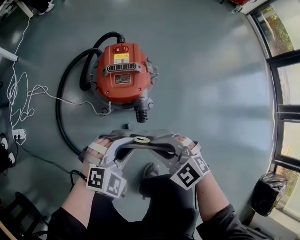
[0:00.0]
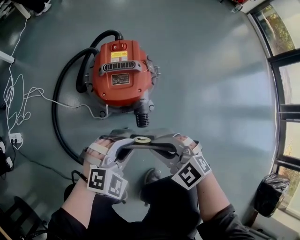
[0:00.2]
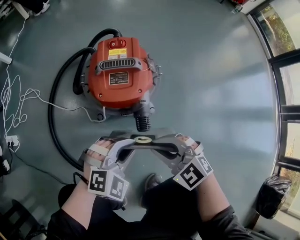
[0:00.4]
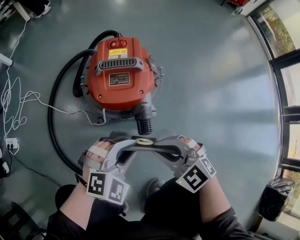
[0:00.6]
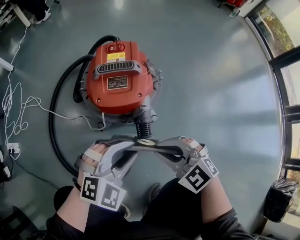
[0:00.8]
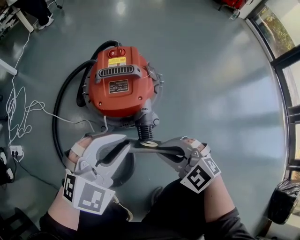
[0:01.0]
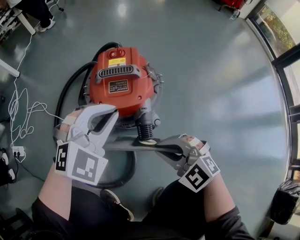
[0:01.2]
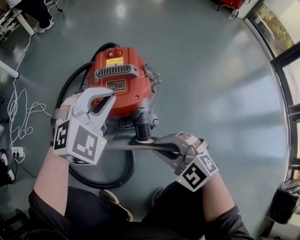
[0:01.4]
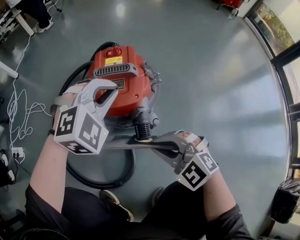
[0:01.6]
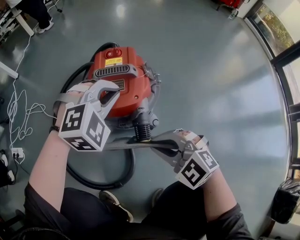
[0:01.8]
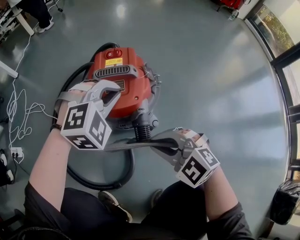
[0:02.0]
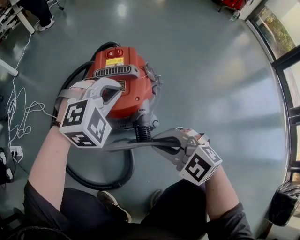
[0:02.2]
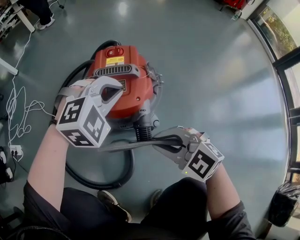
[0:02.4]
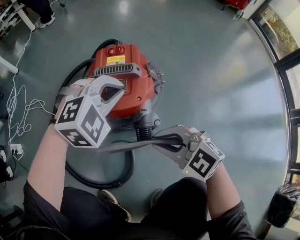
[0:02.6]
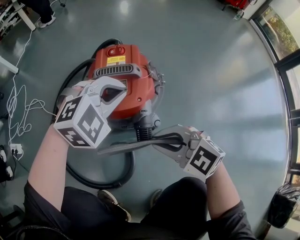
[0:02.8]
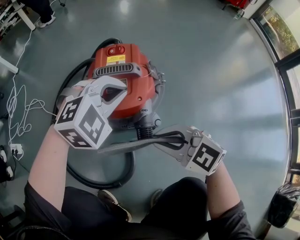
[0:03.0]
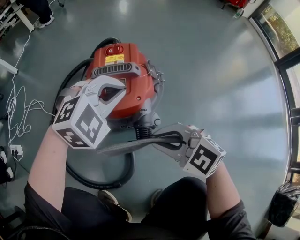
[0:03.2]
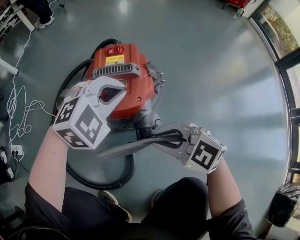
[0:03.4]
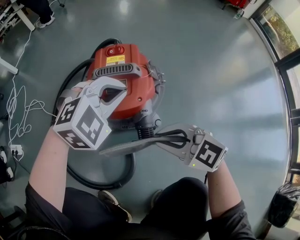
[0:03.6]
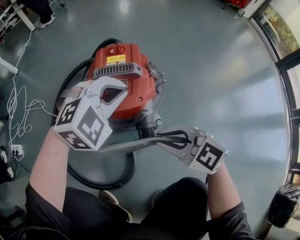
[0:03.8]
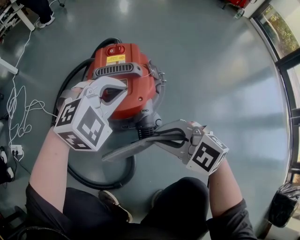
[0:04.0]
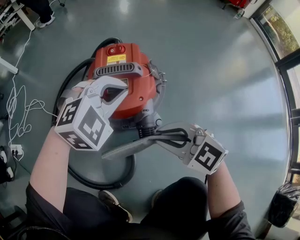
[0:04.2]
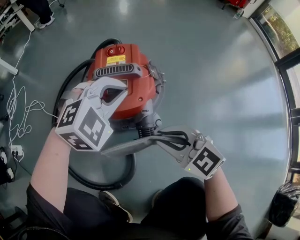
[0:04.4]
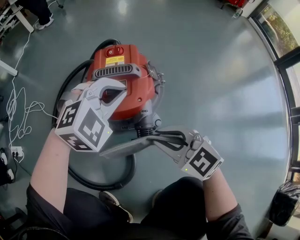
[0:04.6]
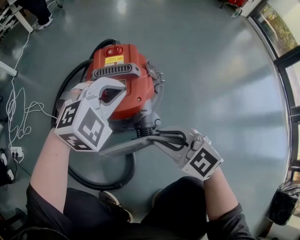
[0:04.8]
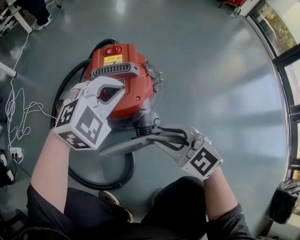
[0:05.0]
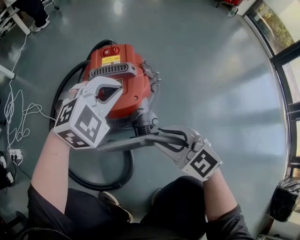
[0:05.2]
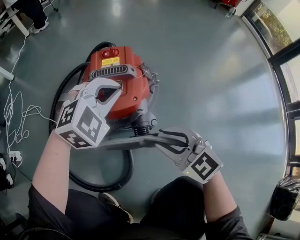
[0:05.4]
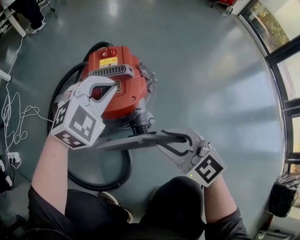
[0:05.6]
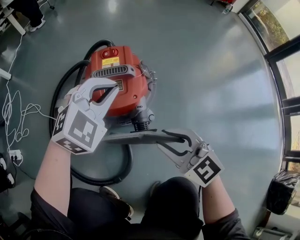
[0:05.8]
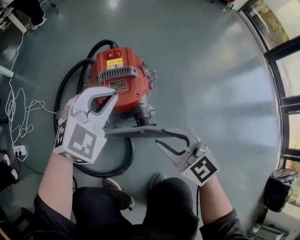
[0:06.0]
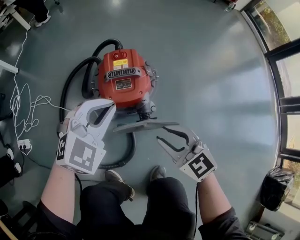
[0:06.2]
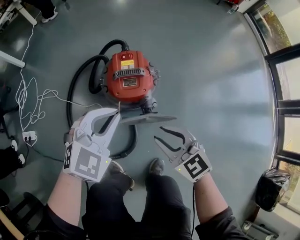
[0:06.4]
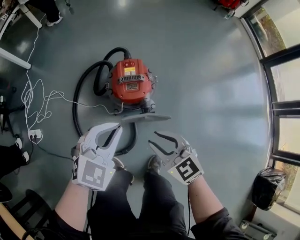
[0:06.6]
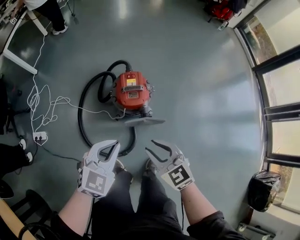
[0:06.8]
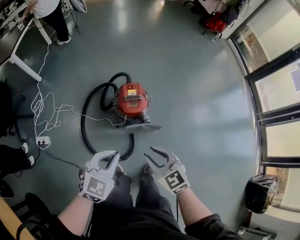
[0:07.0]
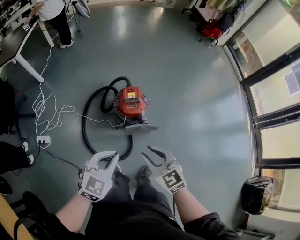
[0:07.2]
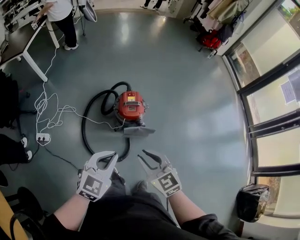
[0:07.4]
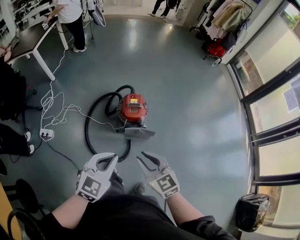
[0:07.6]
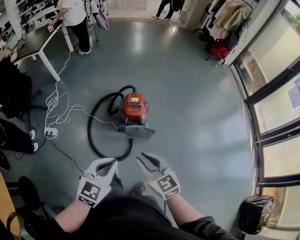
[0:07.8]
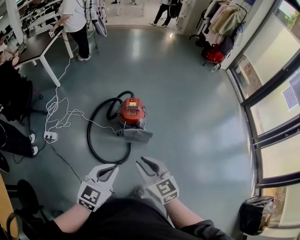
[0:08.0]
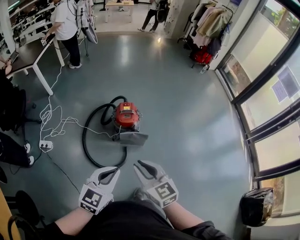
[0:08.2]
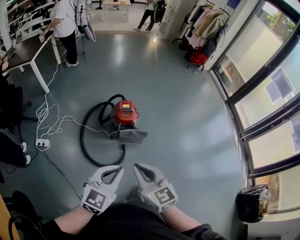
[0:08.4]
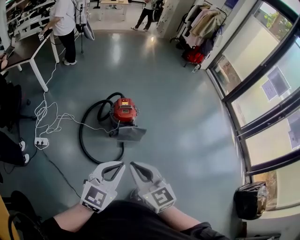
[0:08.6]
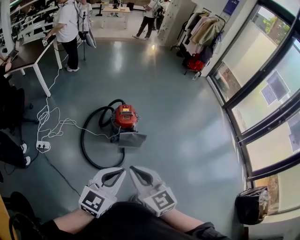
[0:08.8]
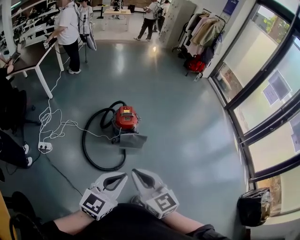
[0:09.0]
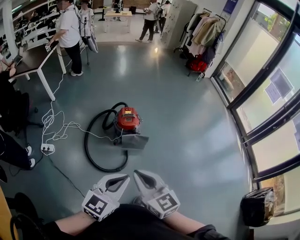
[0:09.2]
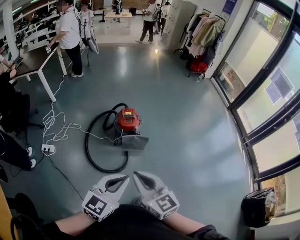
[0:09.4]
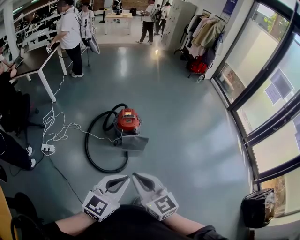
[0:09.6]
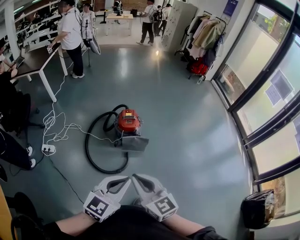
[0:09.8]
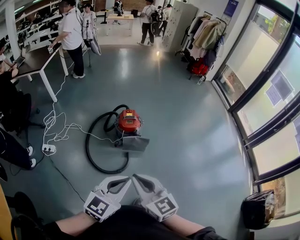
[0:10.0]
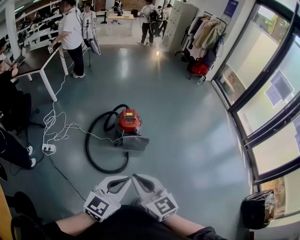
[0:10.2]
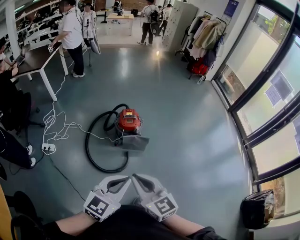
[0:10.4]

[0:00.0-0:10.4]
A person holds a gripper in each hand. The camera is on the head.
0.0 to 1.4 s: The left gripper is displaced forward by roughly 20 cm, rotates about 20 degrees, and closes its fingers, while the right gripper moves downward, approximately 10 cm.
1.4 to 3.0 s: The left gripper shifts by about 5 cm.
3.0 to 4.4 s: The grippers stay close to where they were, moving slightly.
4.4 to 6.0 s: Both grippers travel together upward, roughly 10 cm.
6.0 to 7.4 s: The left gripper heads upward and backward, covering about 50 cm, and changes its angle by approximately 30 degrees, while the right gripper moves upward, roughly 40 cm.
7.4 to 9.0 s: Both grippers move backward and upward, roughly 25 cm. The right gripper closes its fingers.
9.0 to 10.4 s: There are only small adjustments of the grippers.

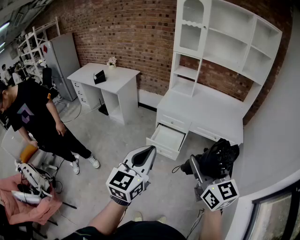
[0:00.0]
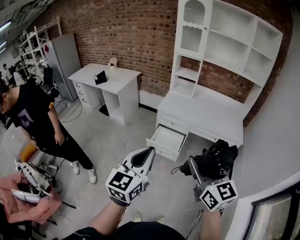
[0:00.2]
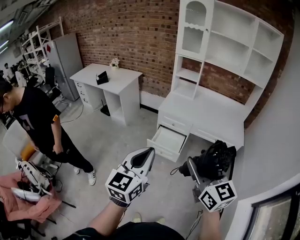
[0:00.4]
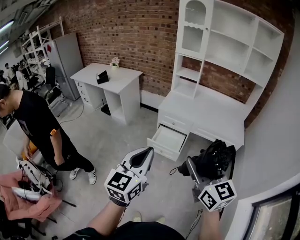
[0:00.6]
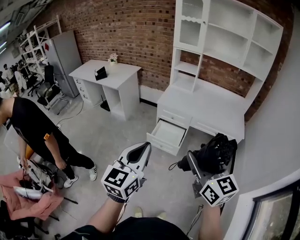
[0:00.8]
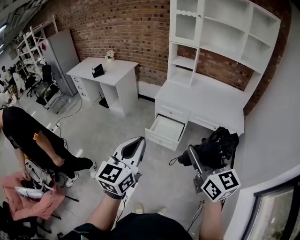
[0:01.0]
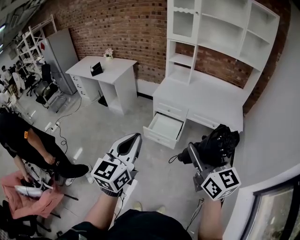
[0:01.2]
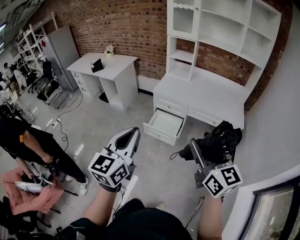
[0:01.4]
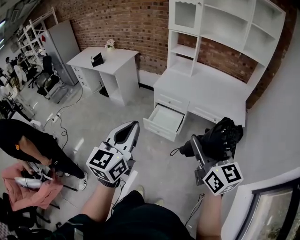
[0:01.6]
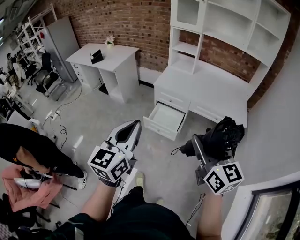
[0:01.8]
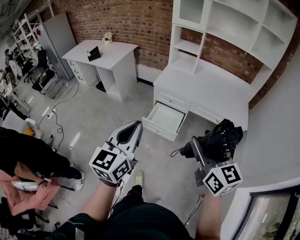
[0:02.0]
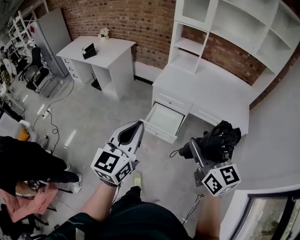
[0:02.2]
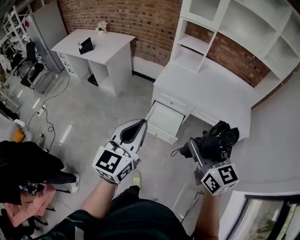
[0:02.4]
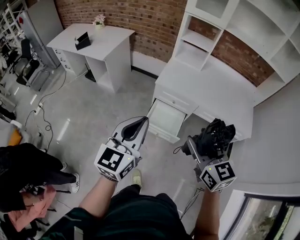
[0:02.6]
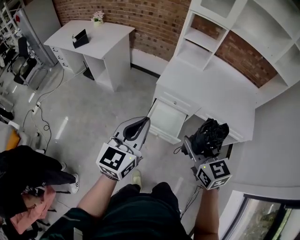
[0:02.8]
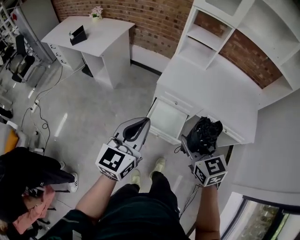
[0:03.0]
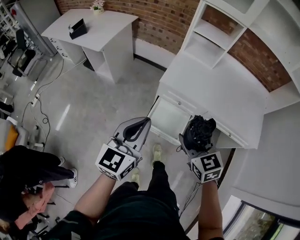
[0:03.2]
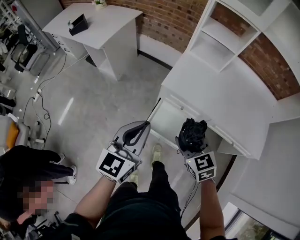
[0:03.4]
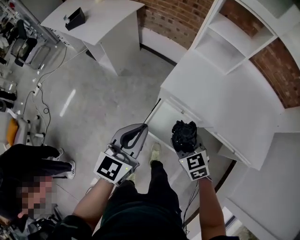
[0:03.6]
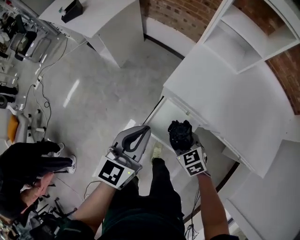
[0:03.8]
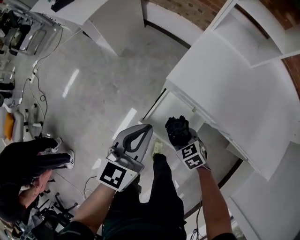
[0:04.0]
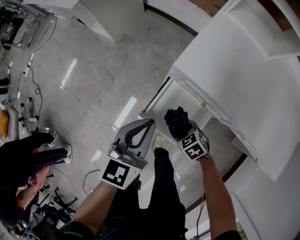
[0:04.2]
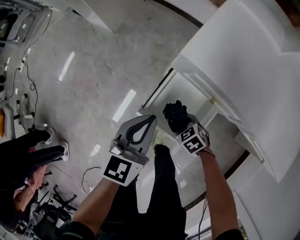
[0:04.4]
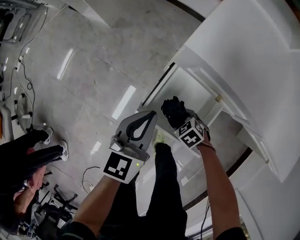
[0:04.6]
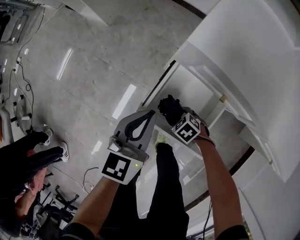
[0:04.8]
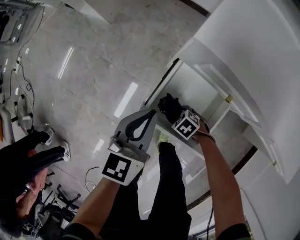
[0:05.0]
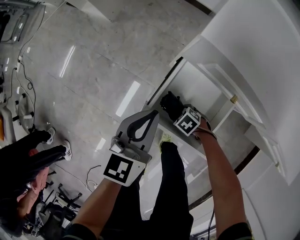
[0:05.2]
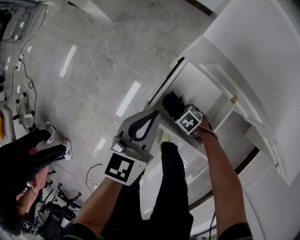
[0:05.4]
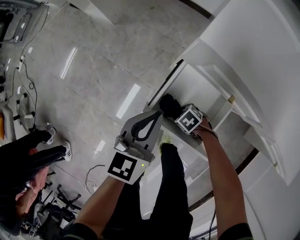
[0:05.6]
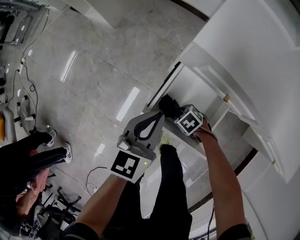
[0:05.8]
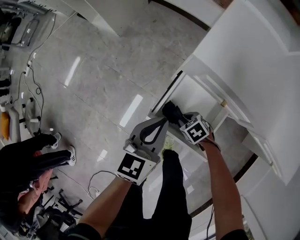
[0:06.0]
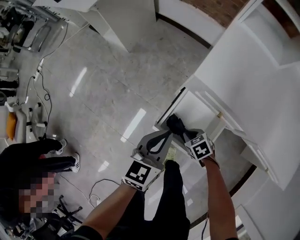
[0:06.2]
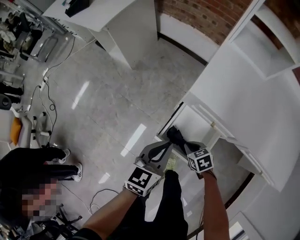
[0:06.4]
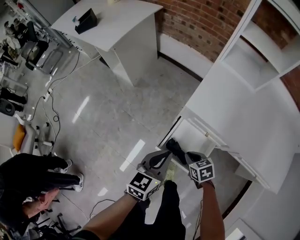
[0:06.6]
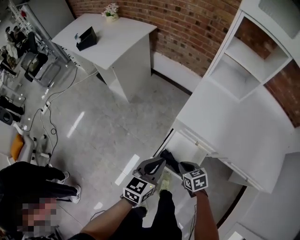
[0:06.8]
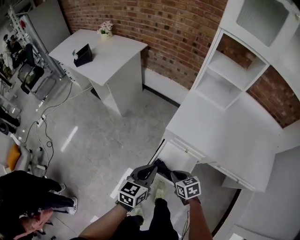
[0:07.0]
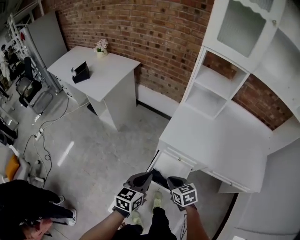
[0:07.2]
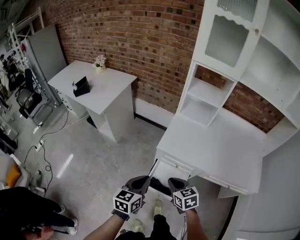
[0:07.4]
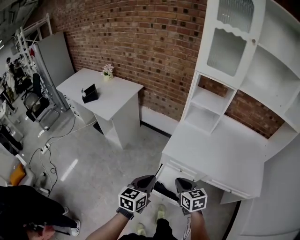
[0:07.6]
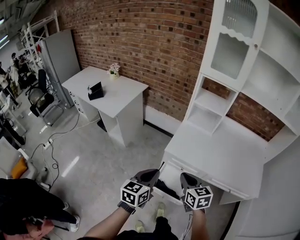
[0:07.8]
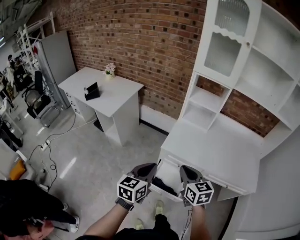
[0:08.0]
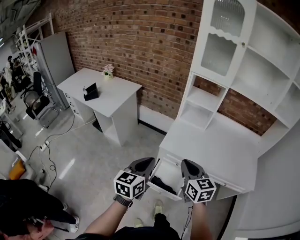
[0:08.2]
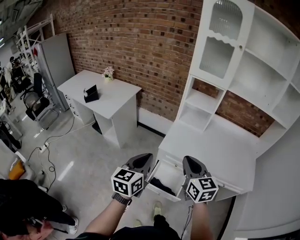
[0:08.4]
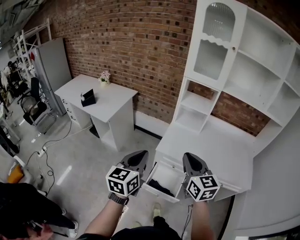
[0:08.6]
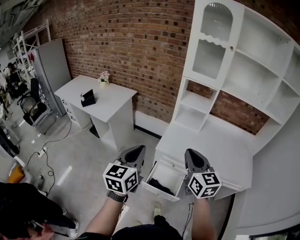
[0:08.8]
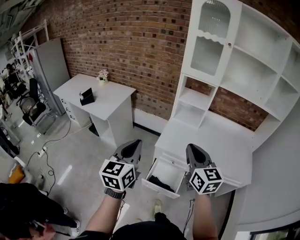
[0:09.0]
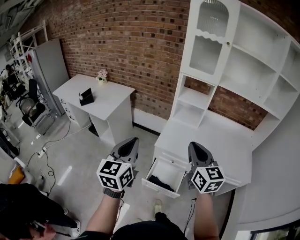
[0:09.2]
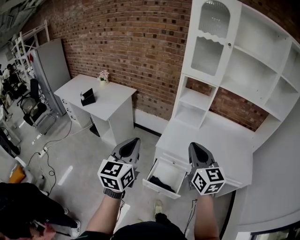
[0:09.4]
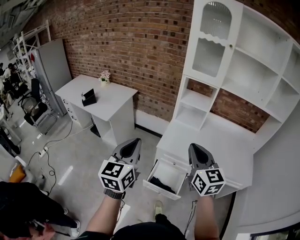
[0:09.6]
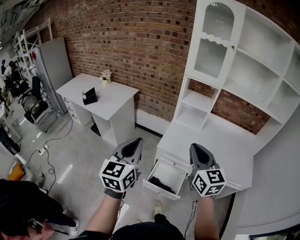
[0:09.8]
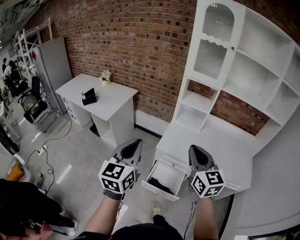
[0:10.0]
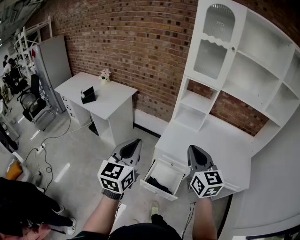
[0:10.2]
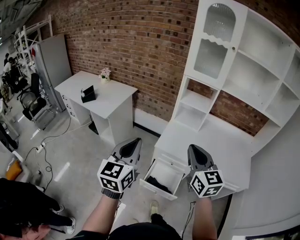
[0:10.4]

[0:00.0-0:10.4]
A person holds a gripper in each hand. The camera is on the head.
0.0 to 1.4 s: The right gripper heads to the right, covering approximately 10 cm.
1.4 to 3.0 s: The left gripper moves forward, some 35 cm. Meanwhile the right gripper shifts roughly 40 cm forward, downward and to the left, and rotates some 30 degrees.
3.0 to 4.4 s: The two grippers go some 50 cm downward. The left gripper rotates roughly 20 degrees. The right gripper points its fingers roughly 40 degrees further downward.
4.4 to 6.0 s: The right gripper goes approximately 5 cm downward, and closes up.
6.0 to 7.4 s: The left gripper heads upward, covering some 30 cm. The right gripper travels upward by approximately 50 cm, and tips its fingers upward by approximately 30 degrees.
7.4 to 9.0 s: The grippers both shift upward by some 30 cm. The left gripper changes its angle by some 20 degrees. Meanwhile the right gripper tilts its fingers roughly 30 degrees upward.
9.0 to 10.4 s: The grippers make only small movements.

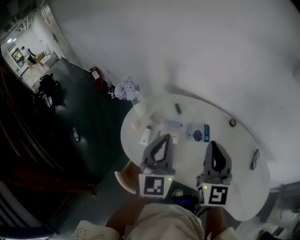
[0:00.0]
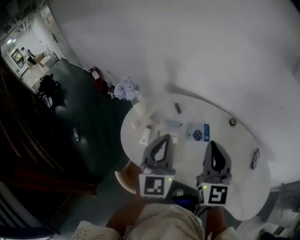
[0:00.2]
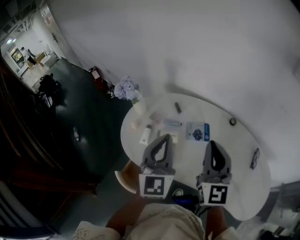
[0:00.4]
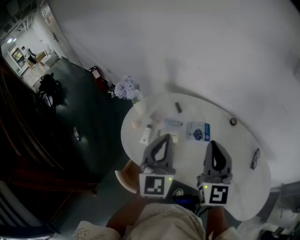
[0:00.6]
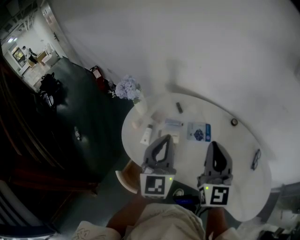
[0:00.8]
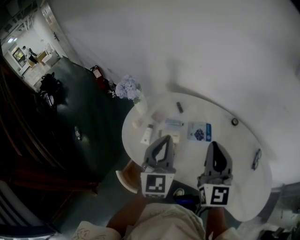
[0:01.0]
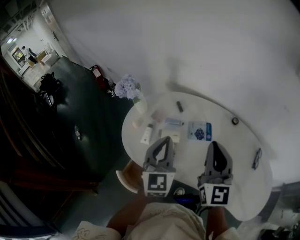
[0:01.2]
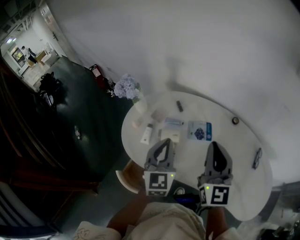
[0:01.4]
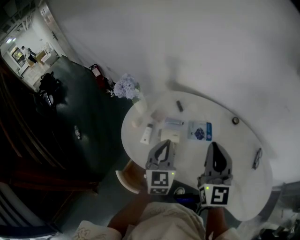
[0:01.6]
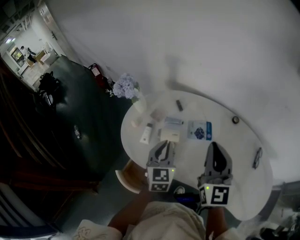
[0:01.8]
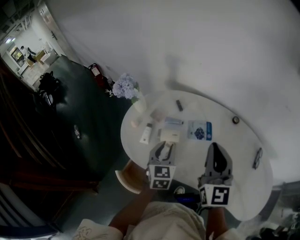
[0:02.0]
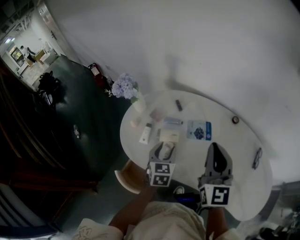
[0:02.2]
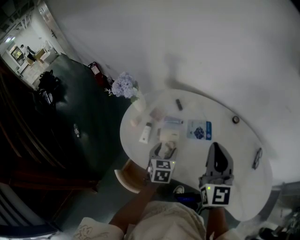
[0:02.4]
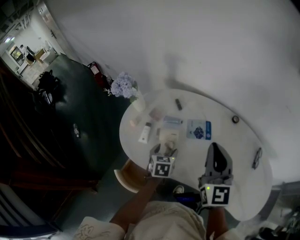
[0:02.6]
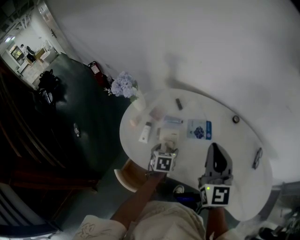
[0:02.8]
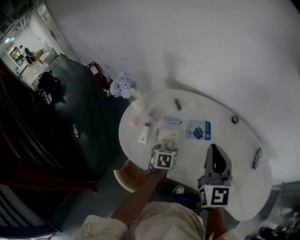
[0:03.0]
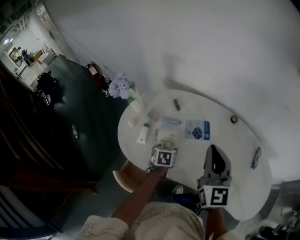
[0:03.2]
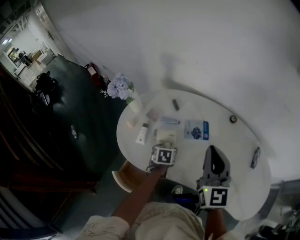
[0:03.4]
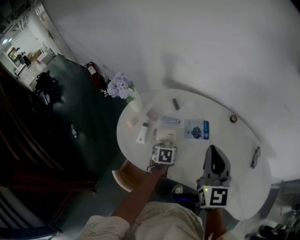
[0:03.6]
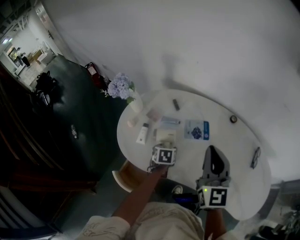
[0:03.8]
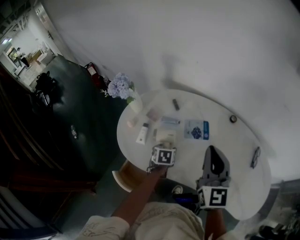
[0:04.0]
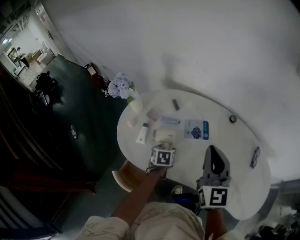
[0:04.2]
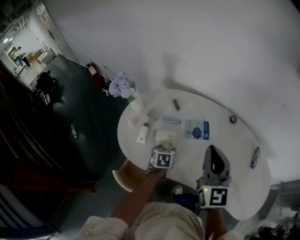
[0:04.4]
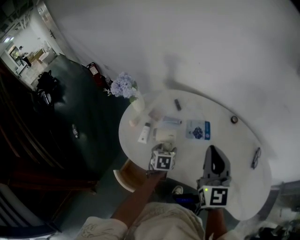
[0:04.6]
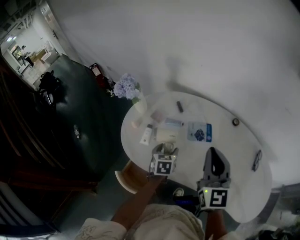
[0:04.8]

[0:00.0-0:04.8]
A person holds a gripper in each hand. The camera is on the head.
0.0 to 1.6 s: The left gripper is displaced downward by approximately 10 cm.
1.6 to 3.2 s: The left gripper moves downward, approximately 20 cm, points its fingers some 40 degrees further downward, and opens up.
3.2 to 4.8 s: The grippers stay close to where they were, moving slightly.
